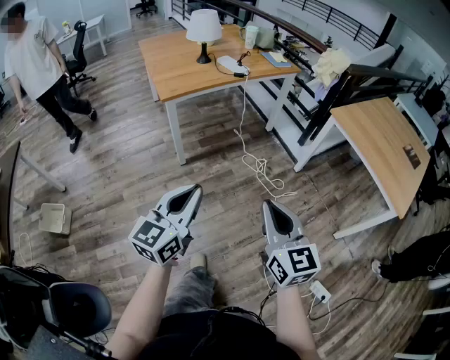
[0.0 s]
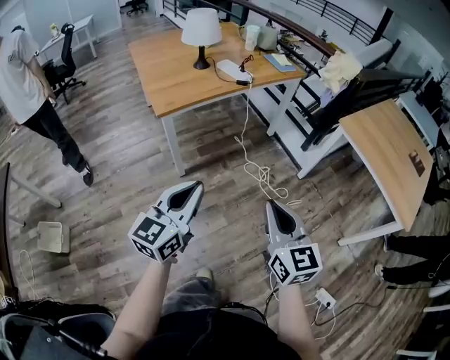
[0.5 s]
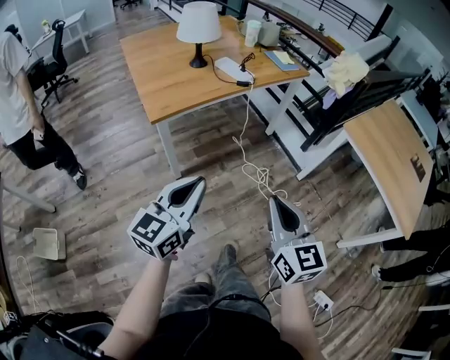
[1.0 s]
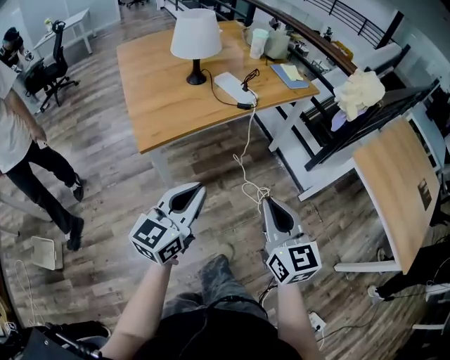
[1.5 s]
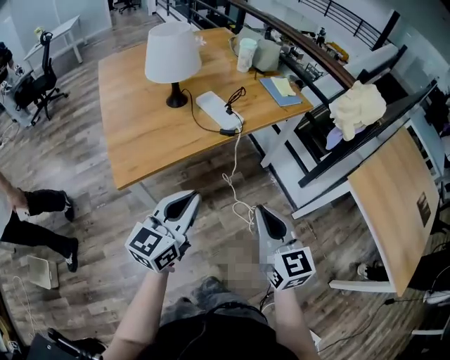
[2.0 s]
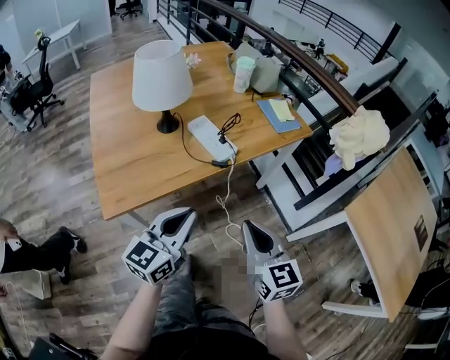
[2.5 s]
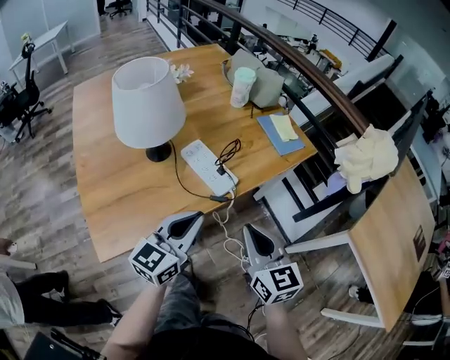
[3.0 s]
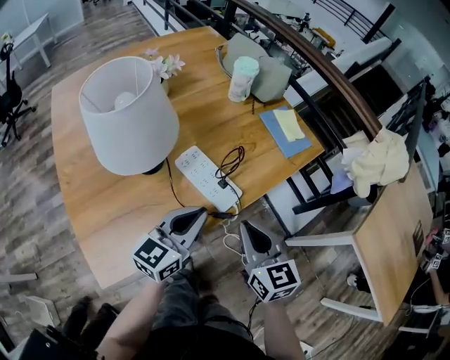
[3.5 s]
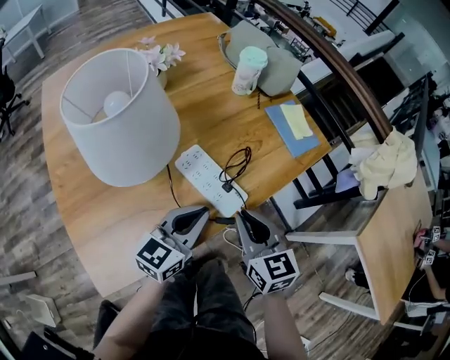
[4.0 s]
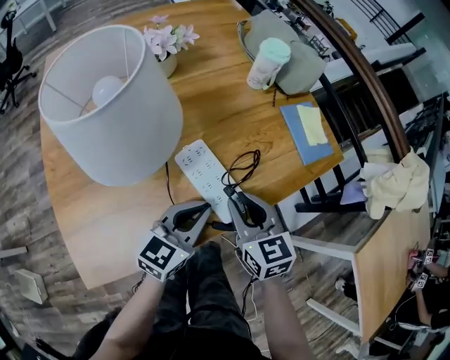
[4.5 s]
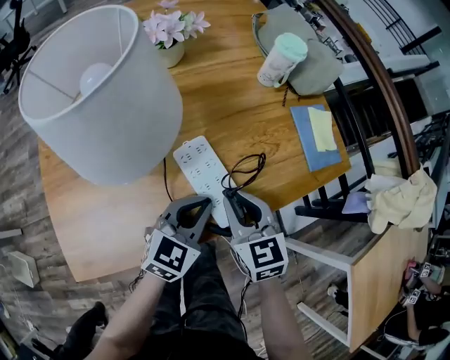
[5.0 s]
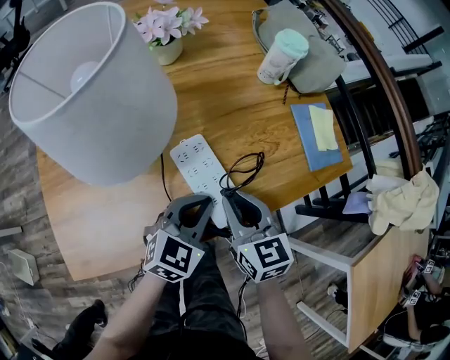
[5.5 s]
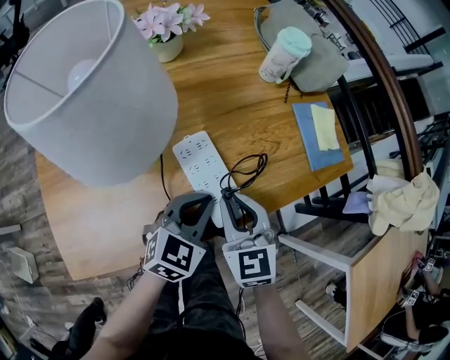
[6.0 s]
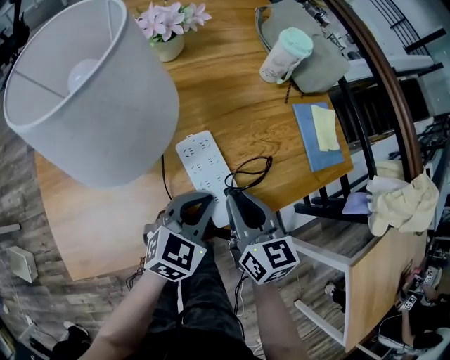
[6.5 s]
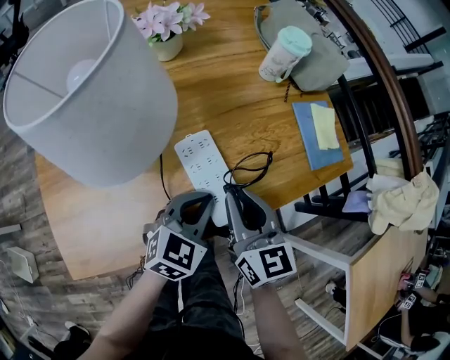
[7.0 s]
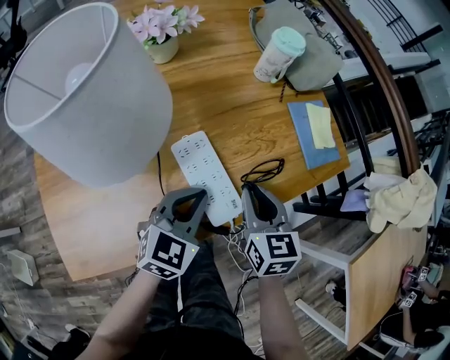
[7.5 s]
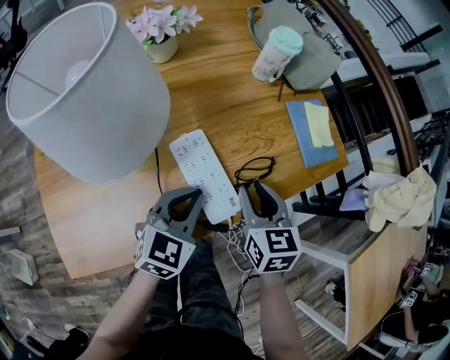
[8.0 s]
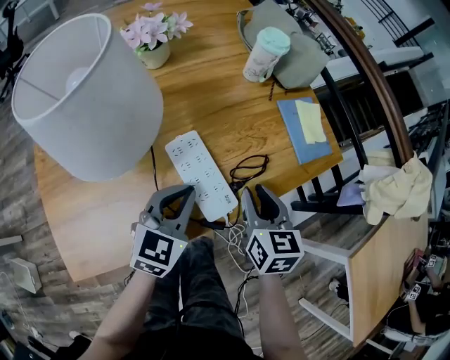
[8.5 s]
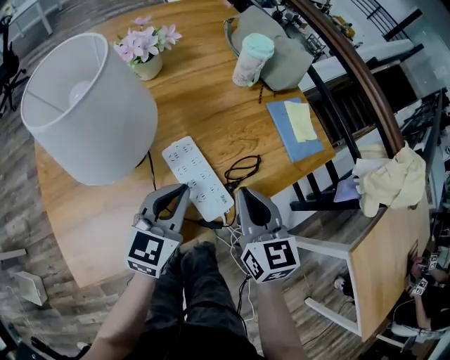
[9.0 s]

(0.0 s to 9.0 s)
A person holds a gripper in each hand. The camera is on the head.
0.0 s - 2.0 s: Both grippers are carried forward, approximately 50 cm.
2.0 s - 4.5 s: The two grippers go some 35 cm forward.
4.5 s - 7.0 s: The left gripper changes its angle by some 20 degrees.
7.0 s - 9.0 s: The right gripper heads to the right, covering about 5 cm; the left gripper goes about 5 cm upward.

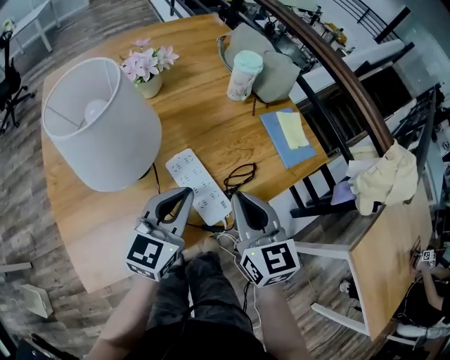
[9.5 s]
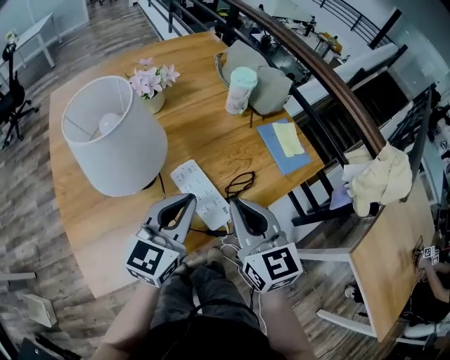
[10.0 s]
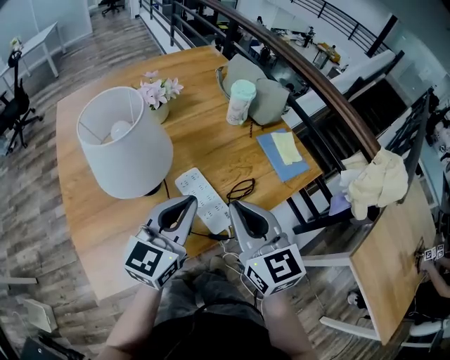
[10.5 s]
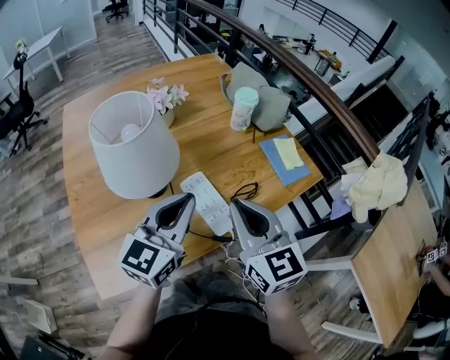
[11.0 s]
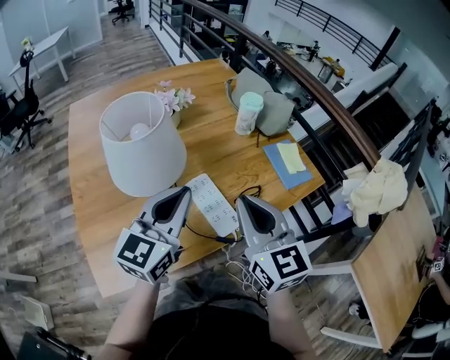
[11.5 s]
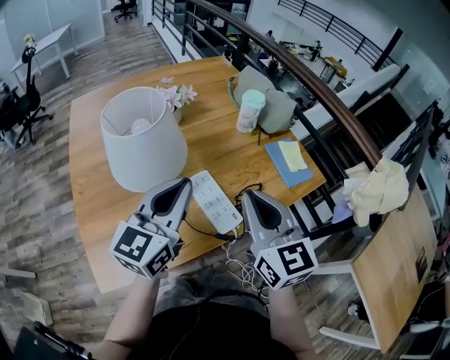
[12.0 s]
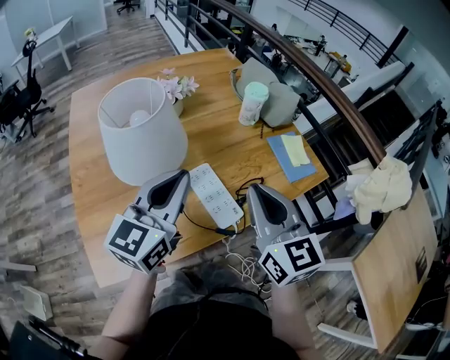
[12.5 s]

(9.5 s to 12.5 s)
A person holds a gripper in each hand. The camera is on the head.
9.5 s - 11.0 s: The grippers both shift upward by about 10 cm.
11.0 s - 12.5 s: The grippers move only a little.

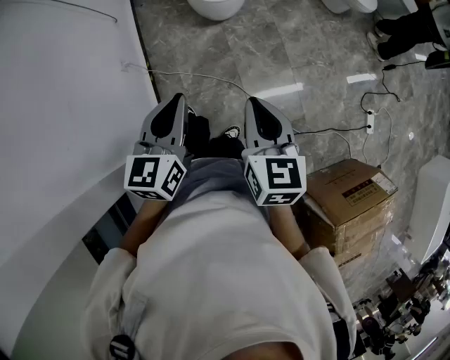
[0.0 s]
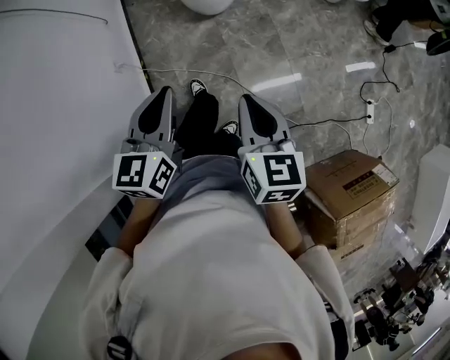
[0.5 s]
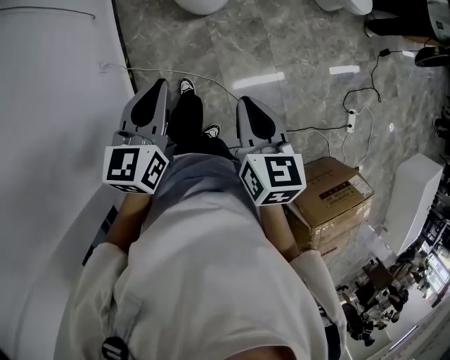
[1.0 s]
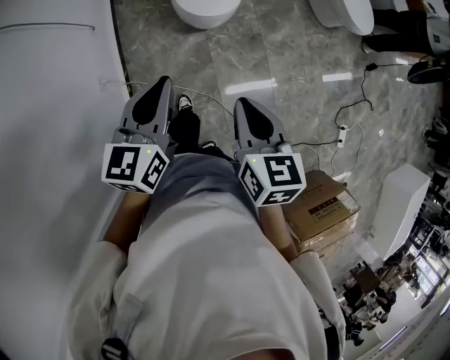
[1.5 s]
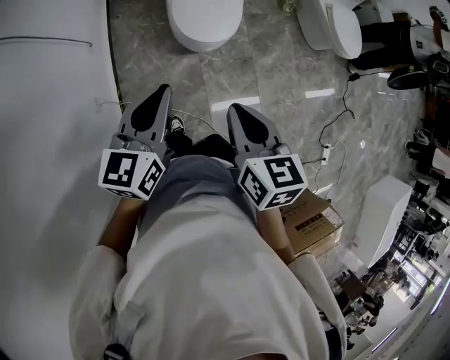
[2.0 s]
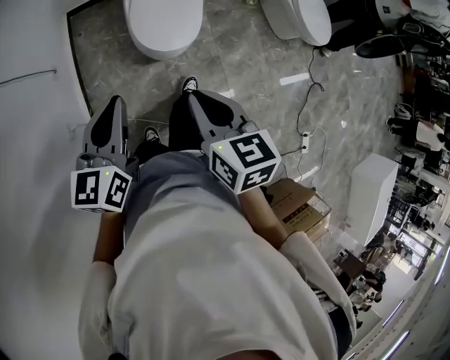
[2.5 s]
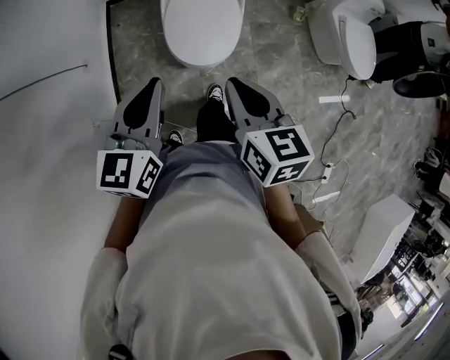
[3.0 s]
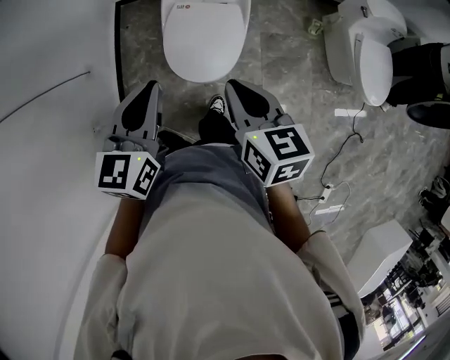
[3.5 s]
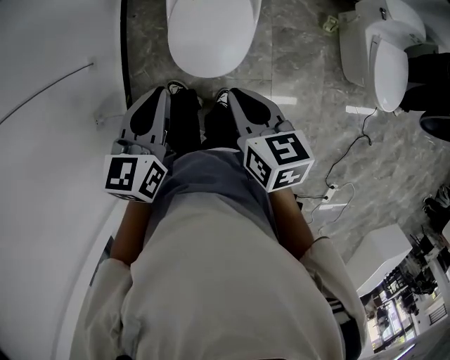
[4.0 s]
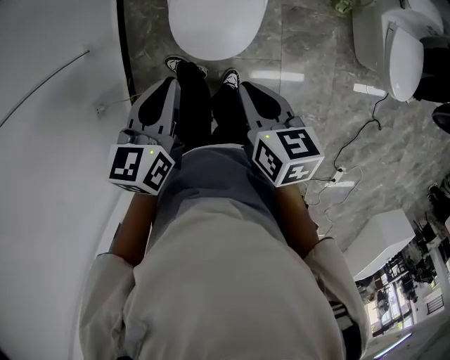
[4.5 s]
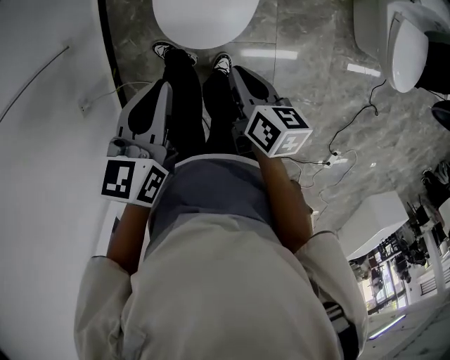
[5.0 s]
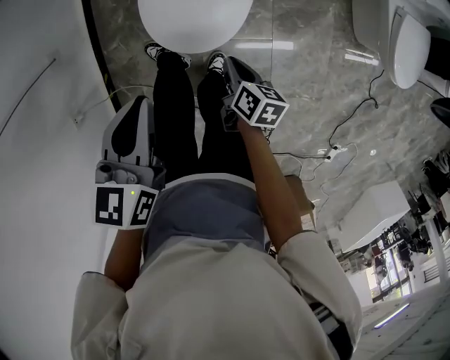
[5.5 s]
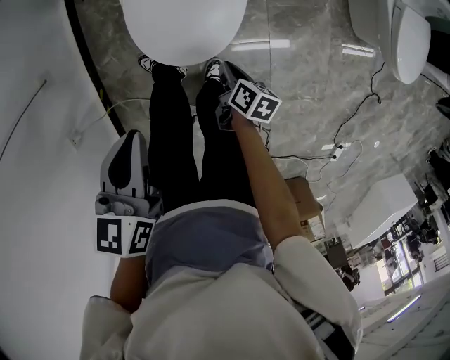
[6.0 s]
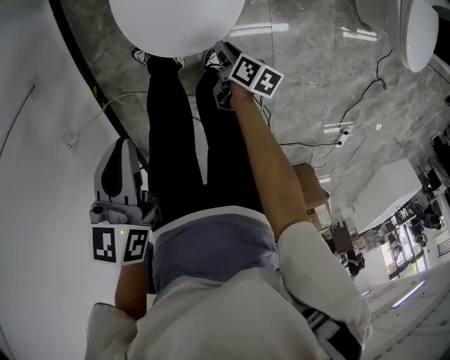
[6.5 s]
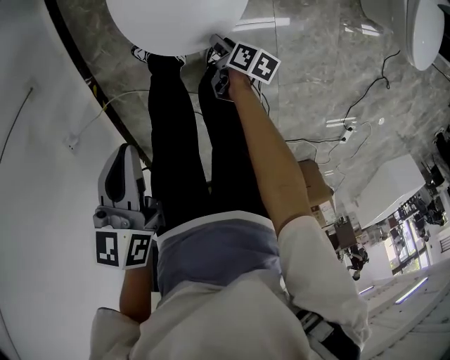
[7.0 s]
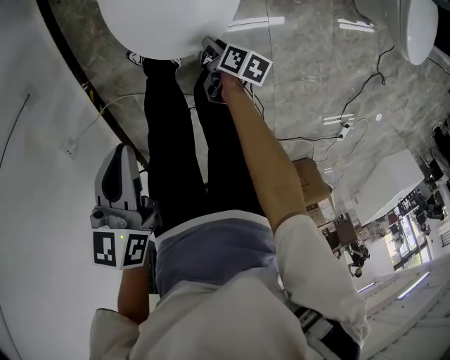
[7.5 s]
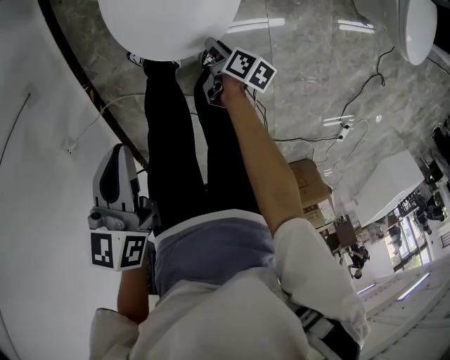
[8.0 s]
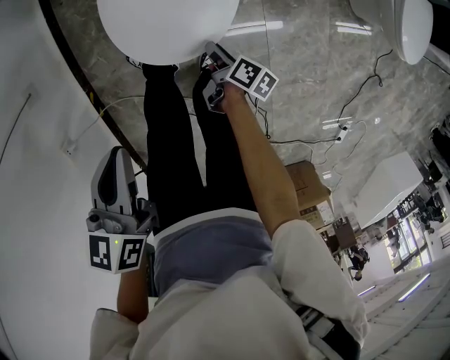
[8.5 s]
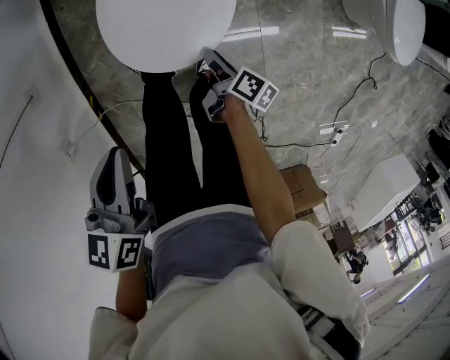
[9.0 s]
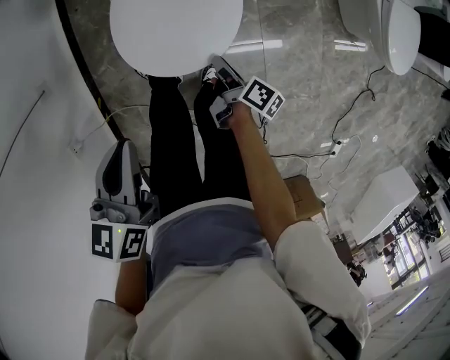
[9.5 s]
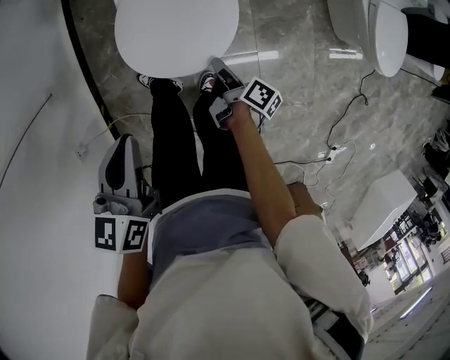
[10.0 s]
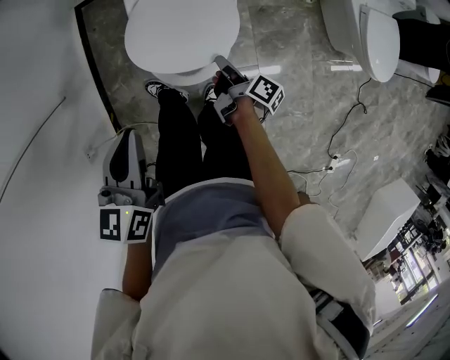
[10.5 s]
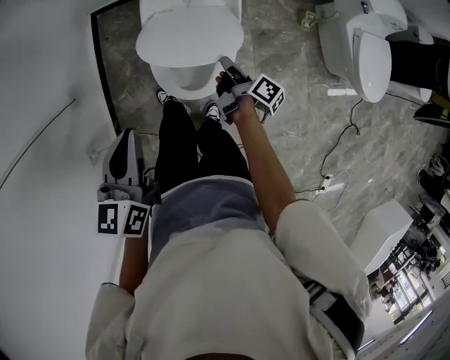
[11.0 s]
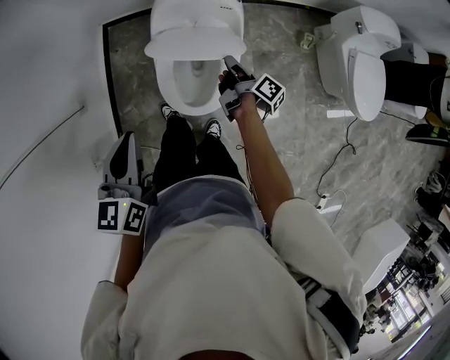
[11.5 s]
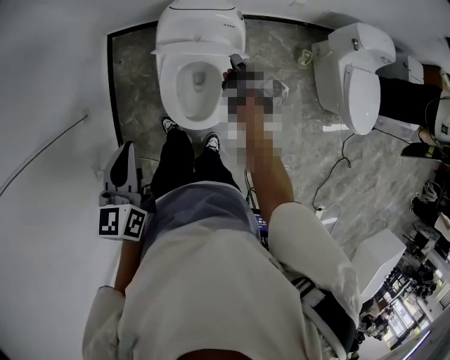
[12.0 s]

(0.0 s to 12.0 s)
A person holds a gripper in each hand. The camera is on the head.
0.0 s - 2.0 s: Both grippers move forward, roughly 30 cm.
2.0 s - 4.0 s: Both grippers move forward and to the right, some 35 cm. The left gripper changes its angle by approximately 20 degrees. Meanwhile the right gripper swivels about 20 degrees.
4.0 s - 6.0 s: The left gripper heads downward, covering approximately 15 cm; the right gripper heads downward, covering approximately 40 cm, and turns by some 40 degrees.
6.0 s - 8.0 s: The right gripper heads downward, covering roughly 10 cm, and opens its fingers, while the left gripper moves about 5 cm.
8.0 s - 10.0 s: The left gripper goes about 10 cm upward; the right gripper shifts roughly 15 cm upward, and turns by roughly 20 degrees.
10.0 s - 12.0 s: The right gripper is displaced forward and upward by some 25 cm. The left gripper shifts roughly 15 cm upward and to the left.

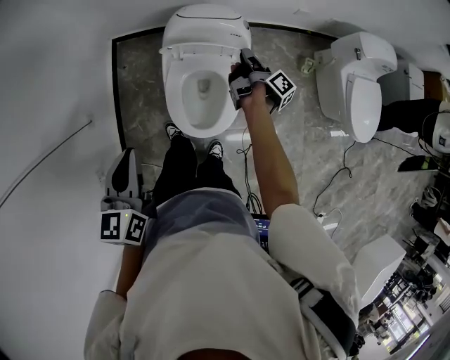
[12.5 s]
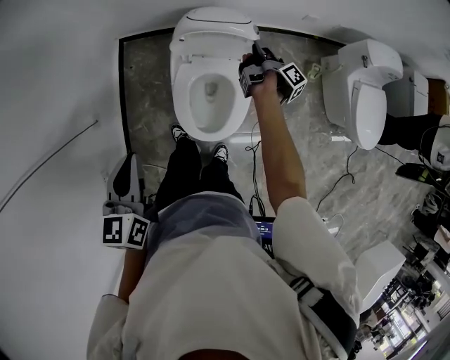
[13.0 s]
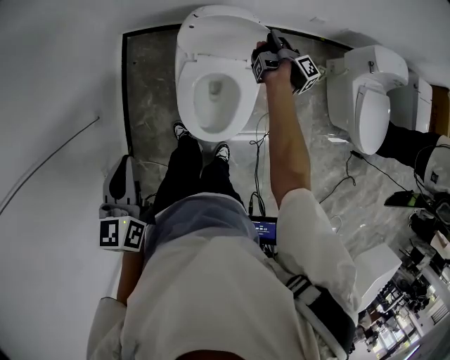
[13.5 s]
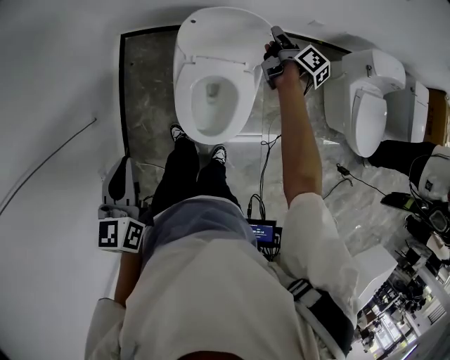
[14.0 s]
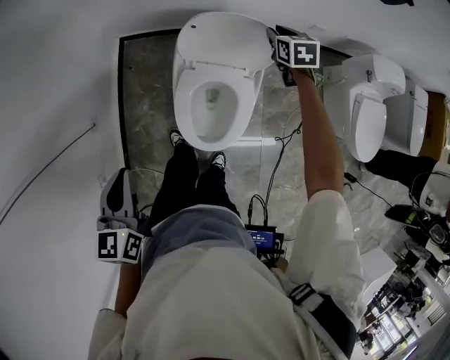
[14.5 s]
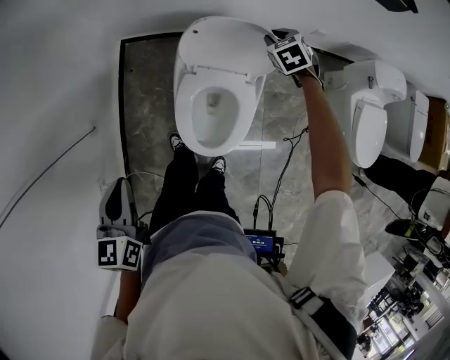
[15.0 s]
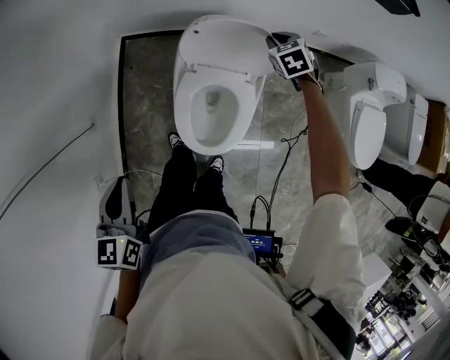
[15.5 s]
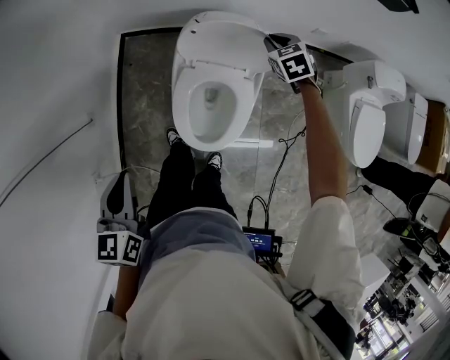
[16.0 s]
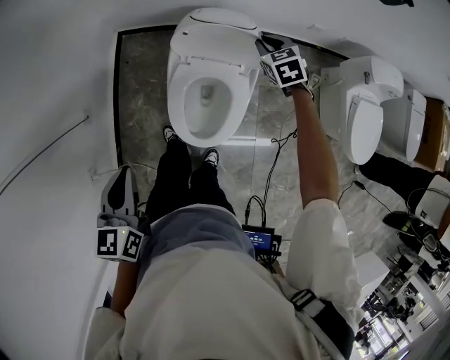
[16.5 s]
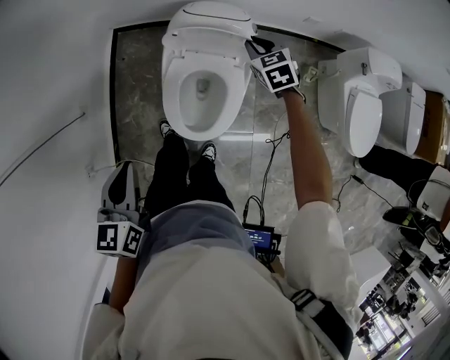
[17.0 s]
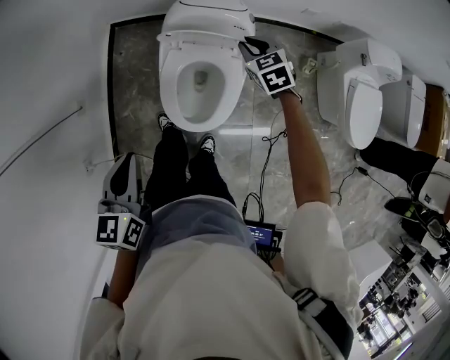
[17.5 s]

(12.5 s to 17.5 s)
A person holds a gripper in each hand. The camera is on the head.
12.5 s - 15.0 s: The left gripper moves to the left, about 5 cm, while the right gripper heads forward, covering roughly 15 cm, and twists roughly 120 degrees counterclockwise, seen from behind.
15.0 s - 17.5 s: The left gripper travels to the right and backward by about 10 cm. Meanwhile the right gripper goes approximately 15 cm backward.
